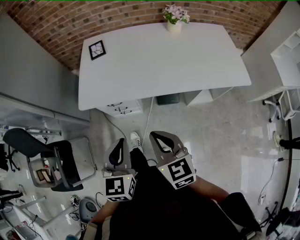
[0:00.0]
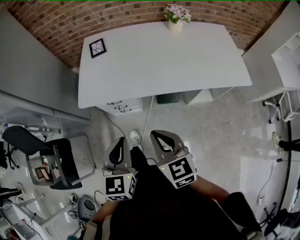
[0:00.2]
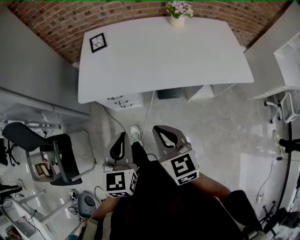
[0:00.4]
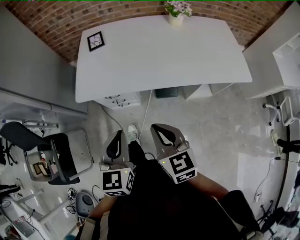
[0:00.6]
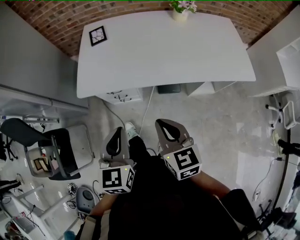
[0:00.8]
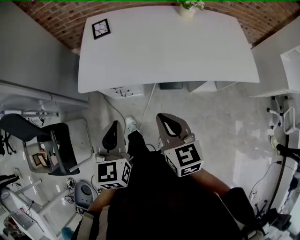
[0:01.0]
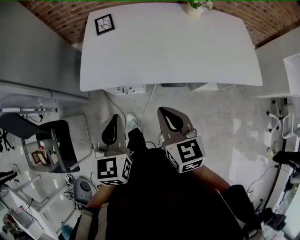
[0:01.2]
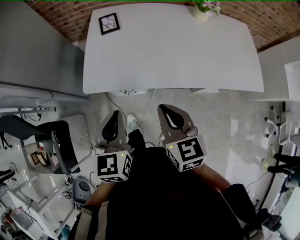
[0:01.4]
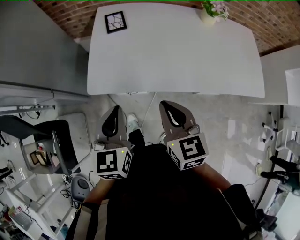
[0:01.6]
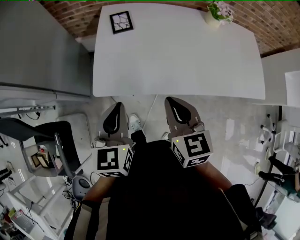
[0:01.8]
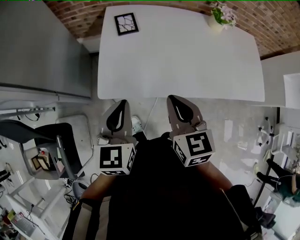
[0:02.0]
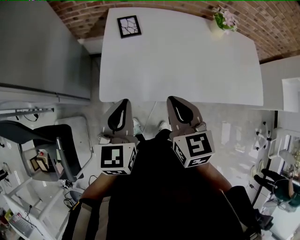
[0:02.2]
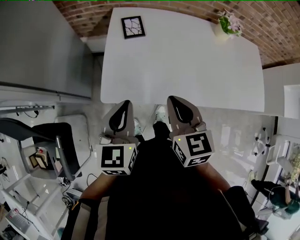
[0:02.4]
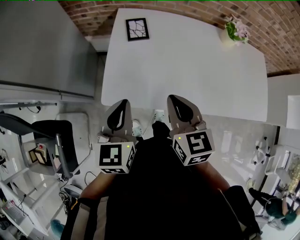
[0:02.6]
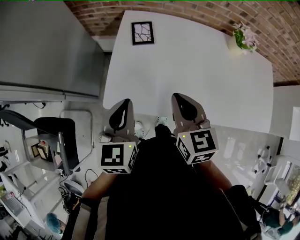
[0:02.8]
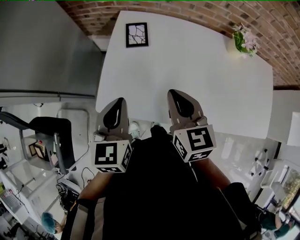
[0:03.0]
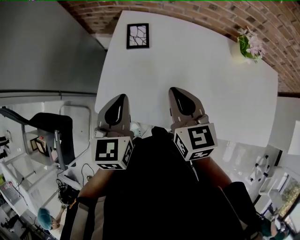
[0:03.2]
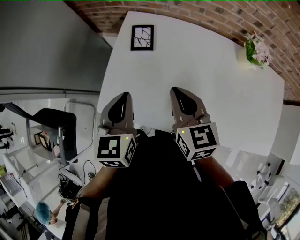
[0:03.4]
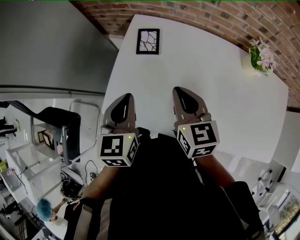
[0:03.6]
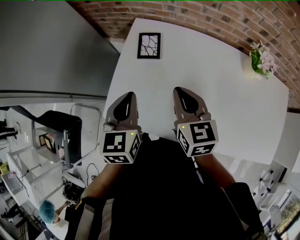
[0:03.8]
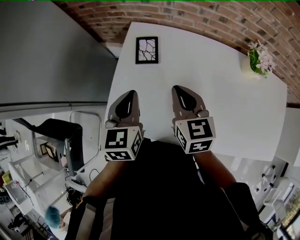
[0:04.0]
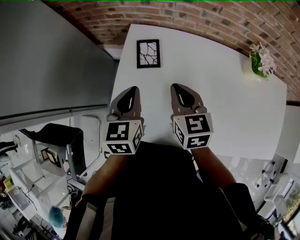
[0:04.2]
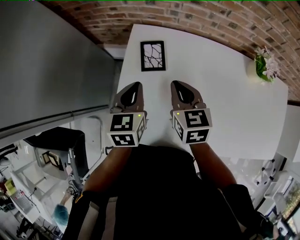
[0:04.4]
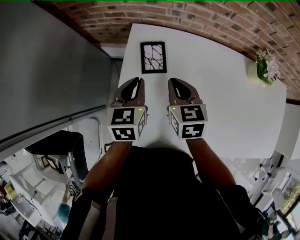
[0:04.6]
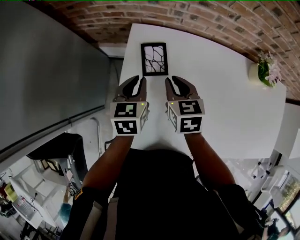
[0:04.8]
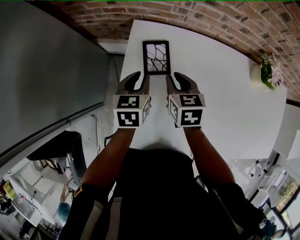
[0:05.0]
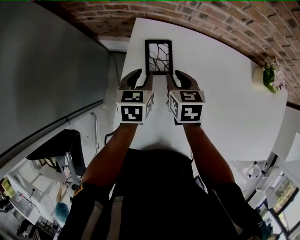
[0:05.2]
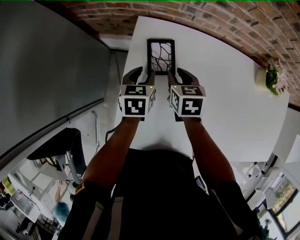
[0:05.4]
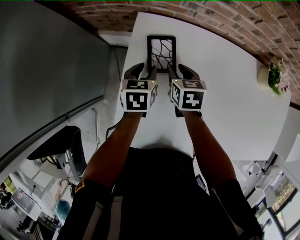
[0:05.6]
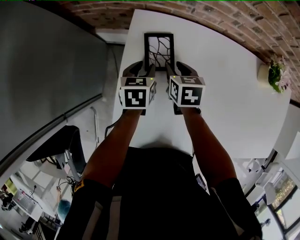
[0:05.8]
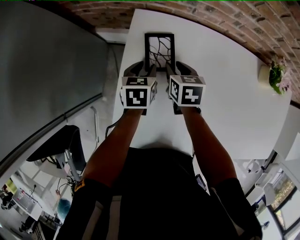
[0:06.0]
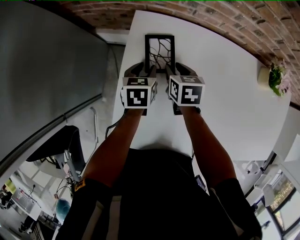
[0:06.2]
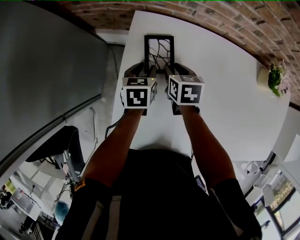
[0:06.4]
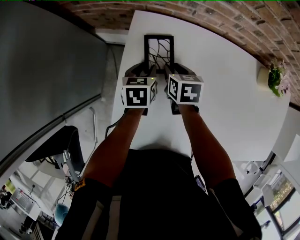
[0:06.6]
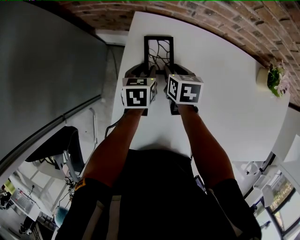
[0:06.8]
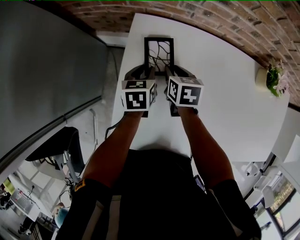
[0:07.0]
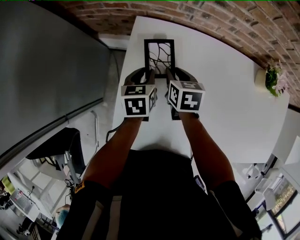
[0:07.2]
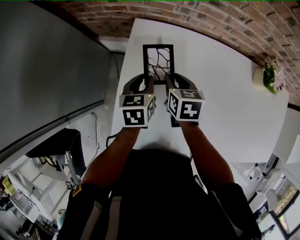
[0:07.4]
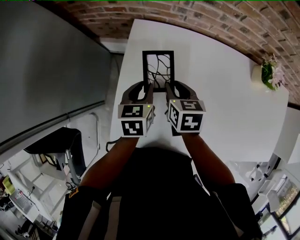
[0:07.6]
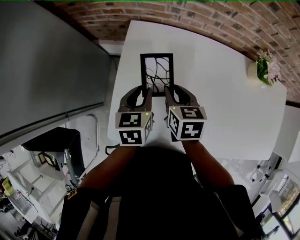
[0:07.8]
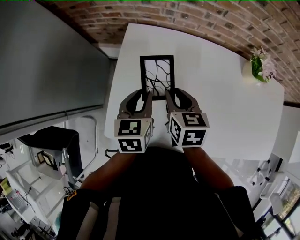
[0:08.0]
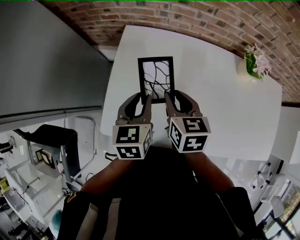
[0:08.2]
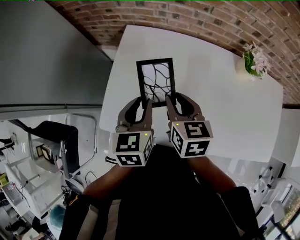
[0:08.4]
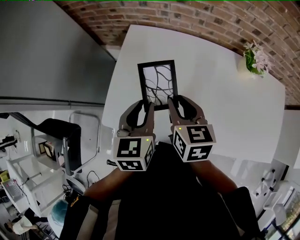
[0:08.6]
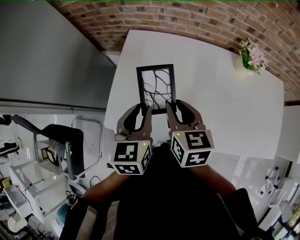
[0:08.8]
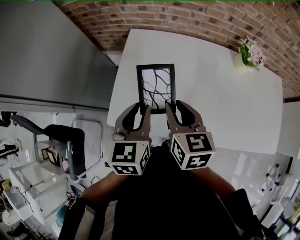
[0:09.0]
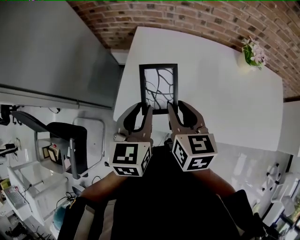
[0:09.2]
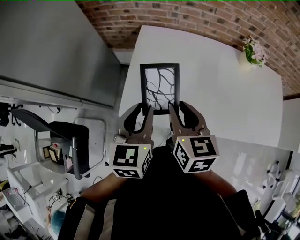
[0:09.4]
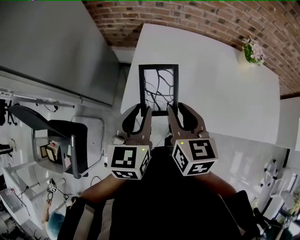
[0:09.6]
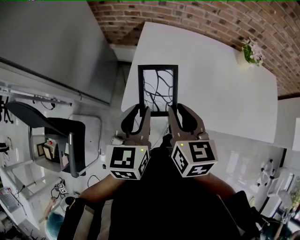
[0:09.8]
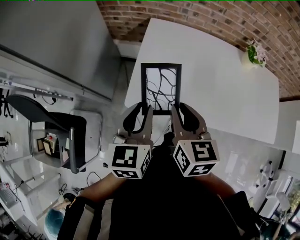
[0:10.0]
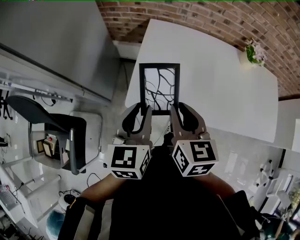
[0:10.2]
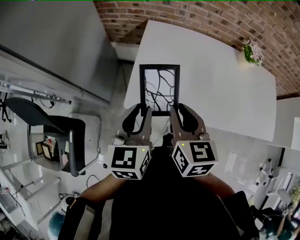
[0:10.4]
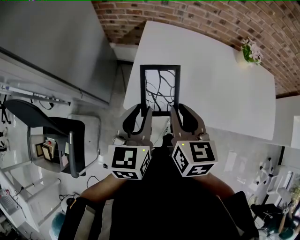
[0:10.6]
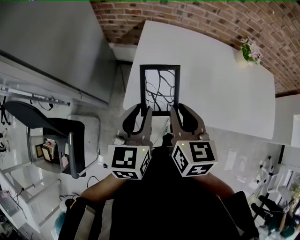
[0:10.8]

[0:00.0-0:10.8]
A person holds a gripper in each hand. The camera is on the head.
0:00.0 to 0:01.6: Both grippers move forward and to the left, roughly 15 cm.
0:01.6 to 0:03.0: The two grippers go some 20 cm forward.
0:03.0 to 0:04.6: The right gripper heads forward and downward, covering some 25 cm. Meanwhile the left gripper moves forward, about 20 cm.
0:04.6 to 0:06.2: Both grippers move downward and forward, some 15 cm. The left gripper opens up; the right gripper opens up.
0:06.2 to 0:07.8: The left gripper travels upward and backward by approximately 15 cm; the right gripper travels backward and upward by approximately 15 cm.
0:07.8 to 0:09.2: Both grippers travel together backward and upward, about 25 cm.
0:09.2 to 0:10.8: Both grippers move to the left and backward, about 10 cm.

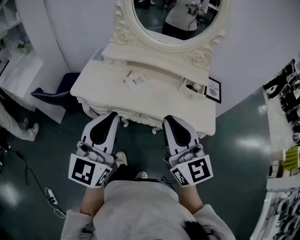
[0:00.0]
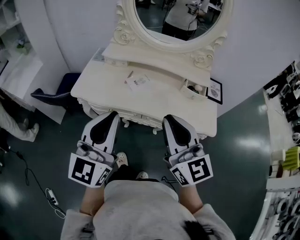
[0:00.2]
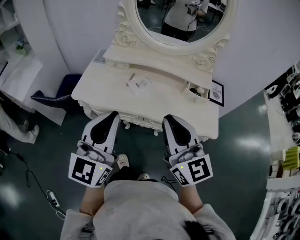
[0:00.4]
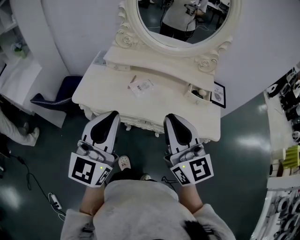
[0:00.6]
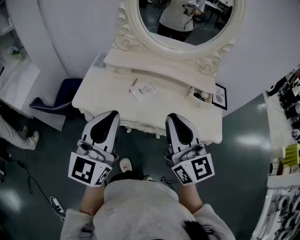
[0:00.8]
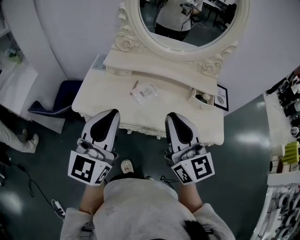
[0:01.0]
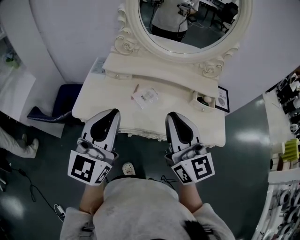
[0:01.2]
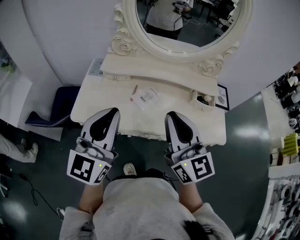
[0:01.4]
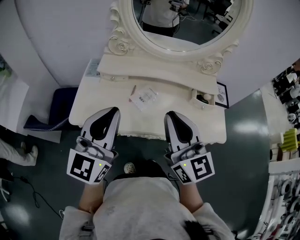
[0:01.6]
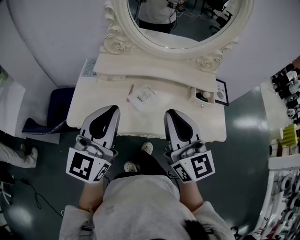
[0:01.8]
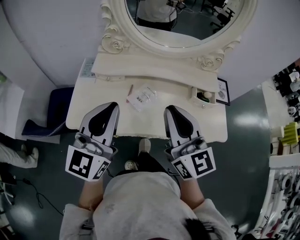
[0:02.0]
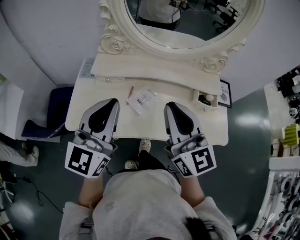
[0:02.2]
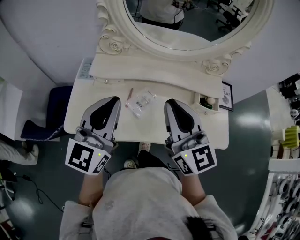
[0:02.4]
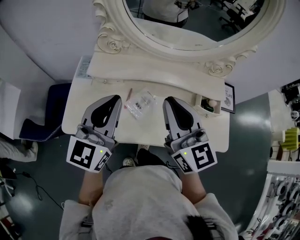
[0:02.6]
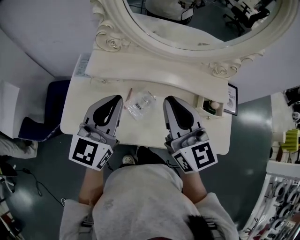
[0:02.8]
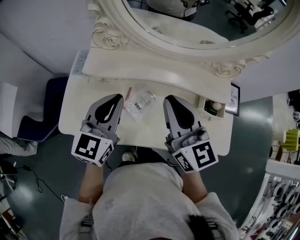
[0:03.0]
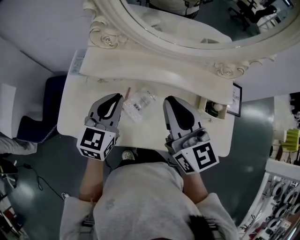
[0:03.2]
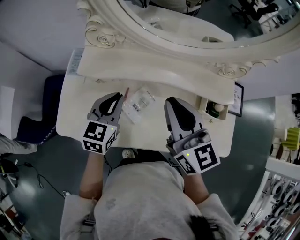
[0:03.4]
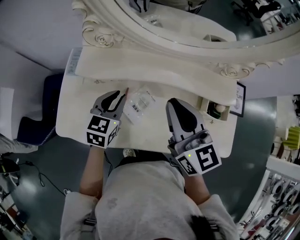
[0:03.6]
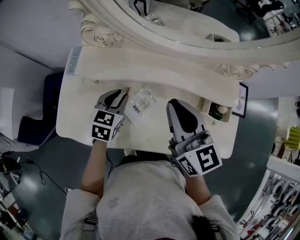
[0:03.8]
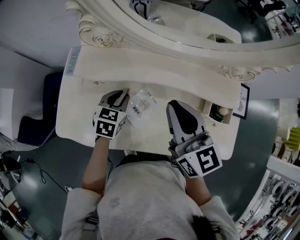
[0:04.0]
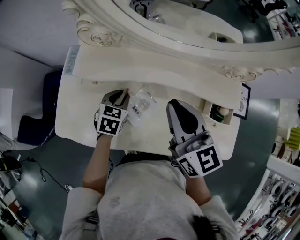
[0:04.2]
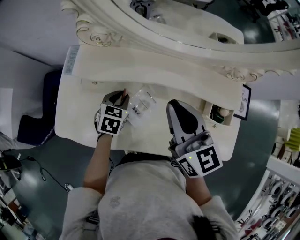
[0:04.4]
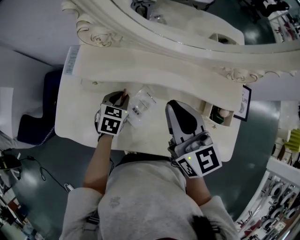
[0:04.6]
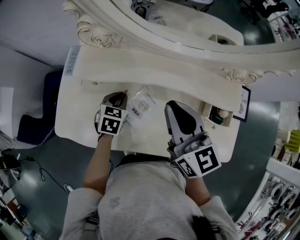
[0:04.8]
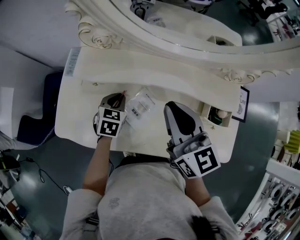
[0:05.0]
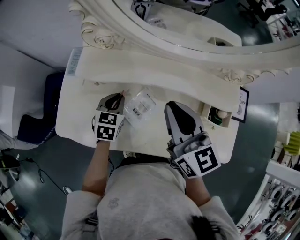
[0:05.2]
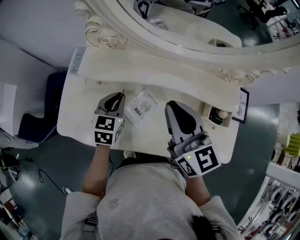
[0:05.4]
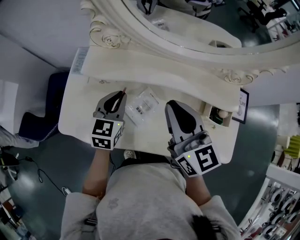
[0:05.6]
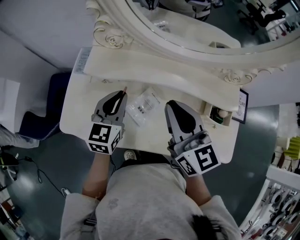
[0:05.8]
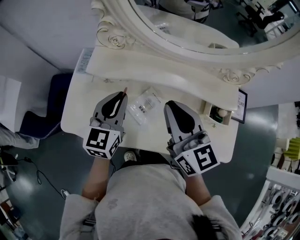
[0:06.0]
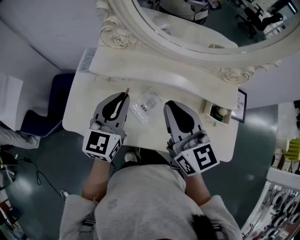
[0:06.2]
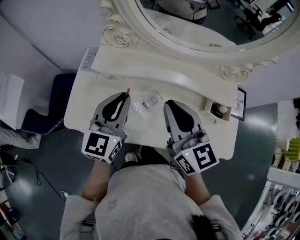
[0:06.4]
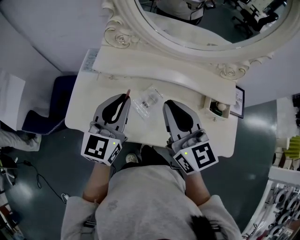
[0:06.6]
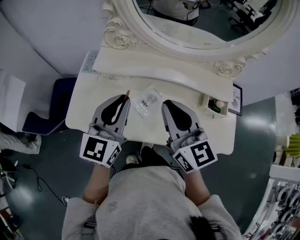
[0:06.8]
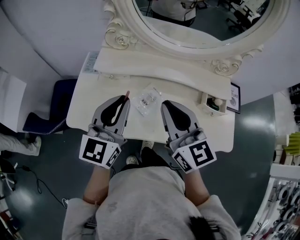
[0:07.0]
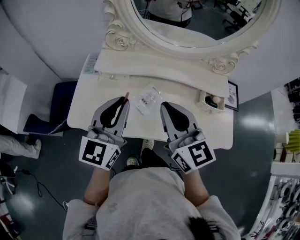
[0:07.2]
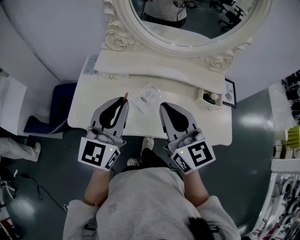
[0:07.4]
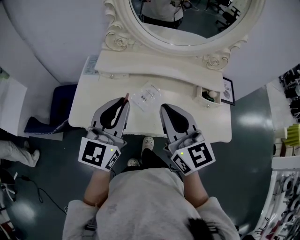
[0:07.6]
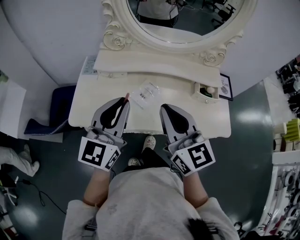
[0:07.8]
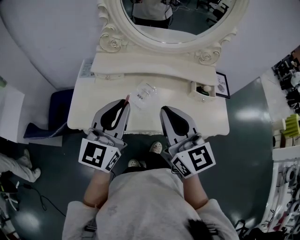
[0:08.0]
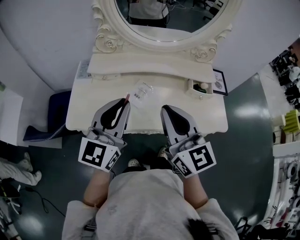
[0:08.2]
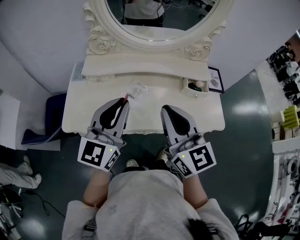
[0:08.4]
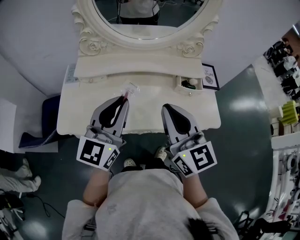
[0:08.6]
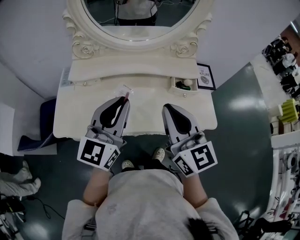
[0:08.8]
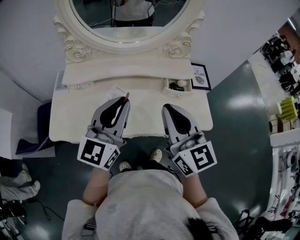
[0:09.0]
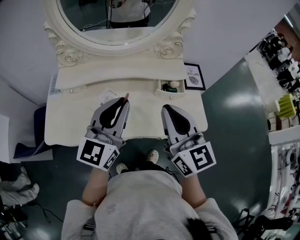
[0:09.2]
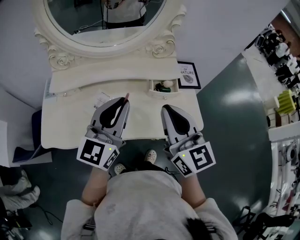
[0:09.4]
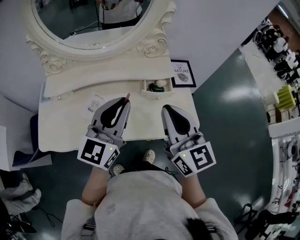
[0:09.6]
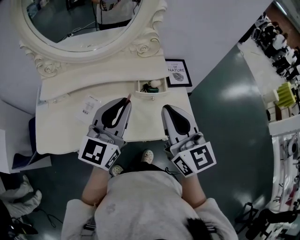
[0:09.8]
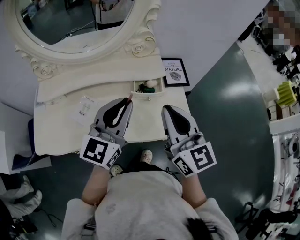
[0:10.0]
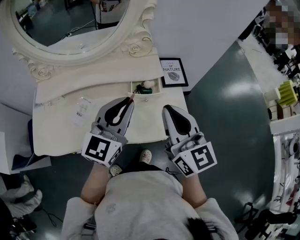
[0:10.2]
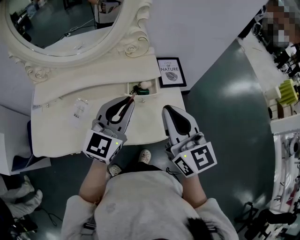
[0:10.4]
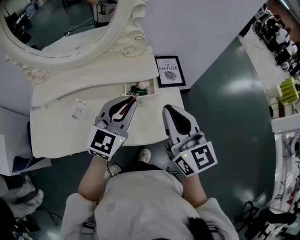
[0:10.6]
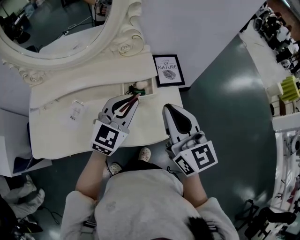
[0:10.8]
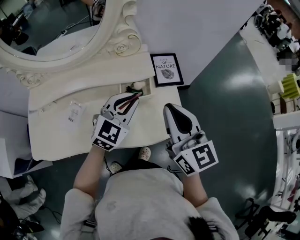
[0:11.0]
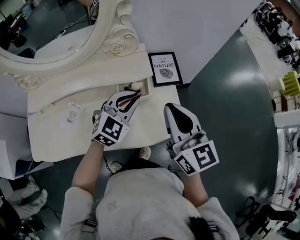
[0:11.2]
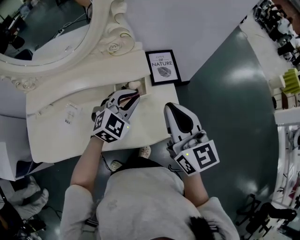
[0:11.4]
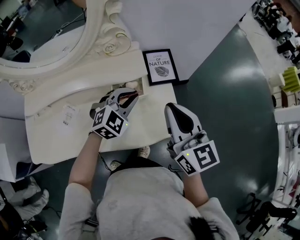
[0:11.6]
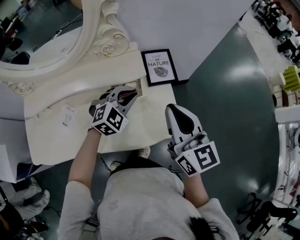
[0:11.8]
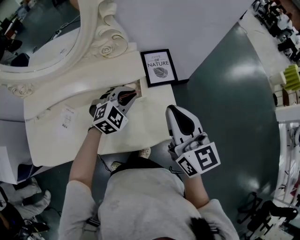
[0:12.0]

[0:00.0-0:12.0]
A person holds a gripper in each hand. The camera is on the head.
0:00.0 to 0:01.6: Both grippers travel together forward and to the left, roughly 20 cm.
0:01.6 to 0:03.0: The right gripper is displaced forward by roughly 20 cm. Meanwhile the left gripper goes some 20 cm forward and downward.
0:03.0 to 0:04.4: The left gripper moves downward, some 25 cm, and angles its fingers downward, by about 40 degrees; the right gripper heads downward and forward, covering about 10 cm.
0:04.4 to 0:06.0: The right gripper moves about 5 cm; the left gripper goes approximately 20 cm upward, and points its fingers roughly 40 degrees further upward.
0:06.0 to 0:07.6: The left gripper heads backward and upward, covering approximately 20 cm; the right gripper is displaced backward by about 15 cm.
0:07.6 to 0:09.0: The two grippers go approximately 15 cm to the right.
0:09.0 to 0:10.4: The right gripper is displaced to the right by about 20 cm; the left gripper travels to the right and forward by some 25 cm.
0:10.4 to 0:12.0: The left gripper goes some 20 cm downward, forward and to the right, and tilts its fingers roughly 40 degrees downward; the right gripper heads to the right and forward, covering roughly 10 cm.

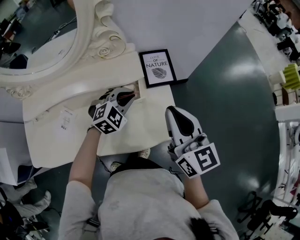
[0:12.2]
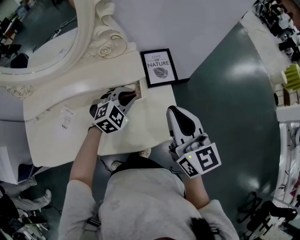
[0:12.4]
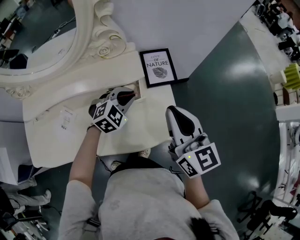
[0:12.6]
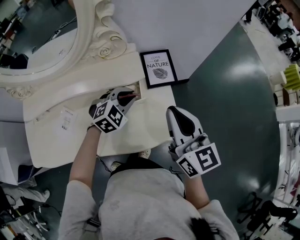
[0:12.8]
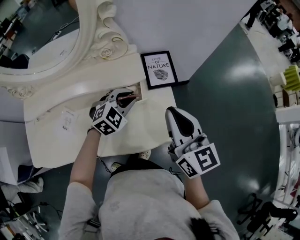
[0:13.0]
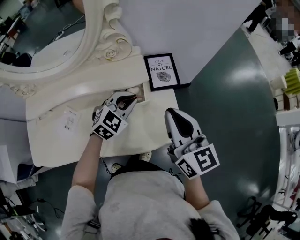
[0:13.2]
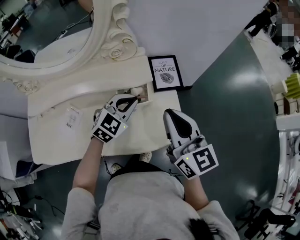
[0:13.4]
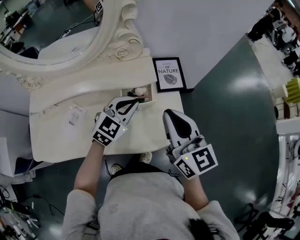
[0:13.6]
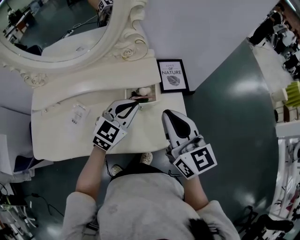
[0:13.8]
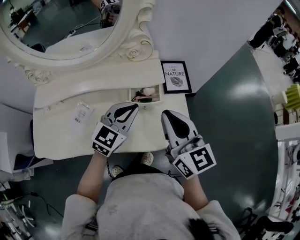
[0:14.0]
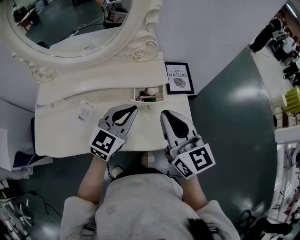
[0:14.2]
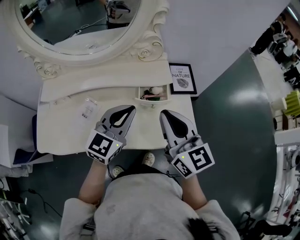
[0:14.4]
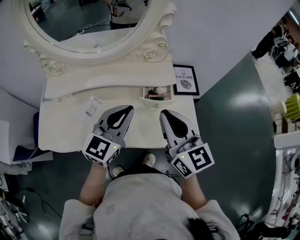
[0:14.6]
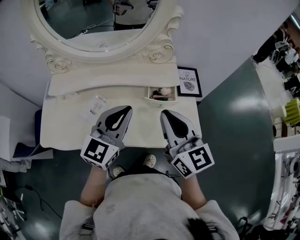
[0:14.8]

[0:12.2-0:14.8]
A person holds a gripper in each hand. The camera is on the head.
0:12.2 to 0:13.4: The left gripper moves some 5 cm.
0:13.4 to 0:14.8: The left gripper moves to the left, upward and backward, approximately 25 cm, and changes its angle by some 40 degrees, while the right gripper moves to the left and backward, approximately 15 cm.
